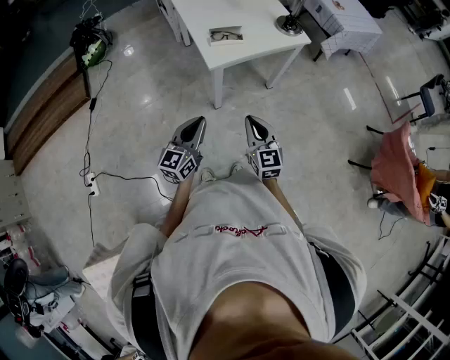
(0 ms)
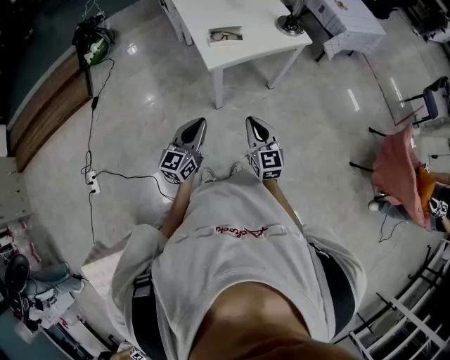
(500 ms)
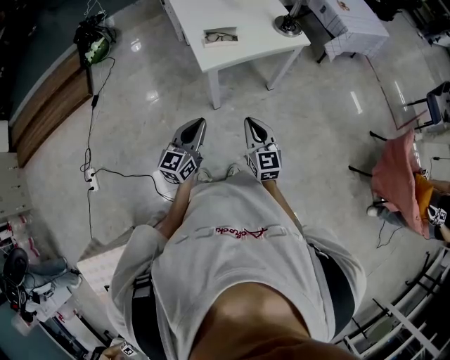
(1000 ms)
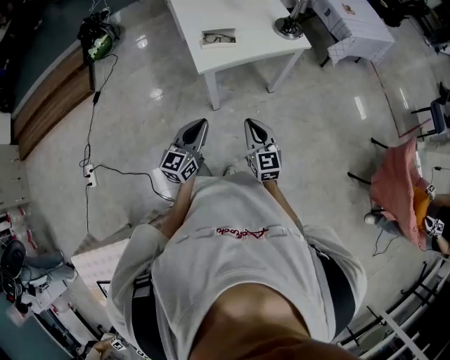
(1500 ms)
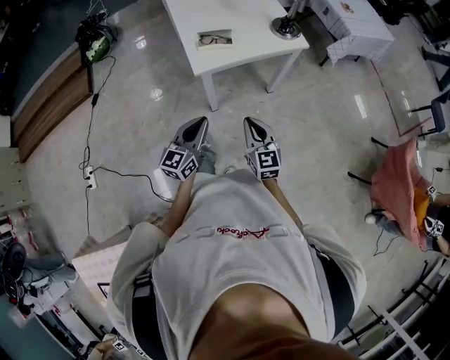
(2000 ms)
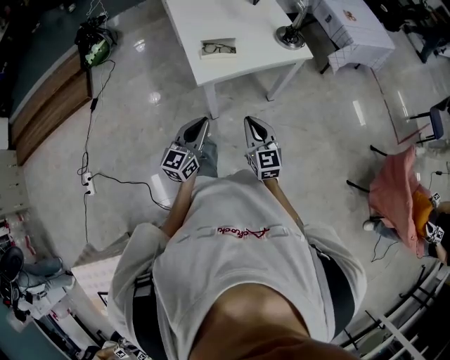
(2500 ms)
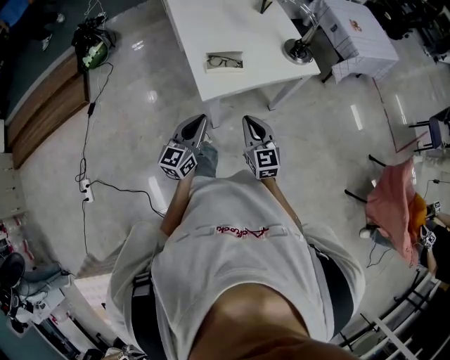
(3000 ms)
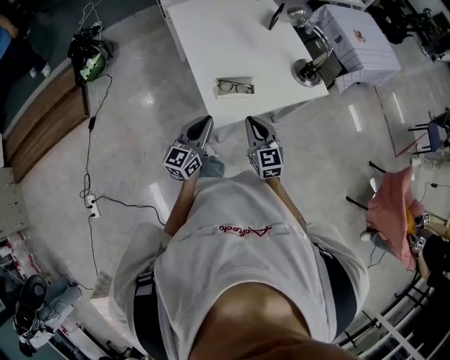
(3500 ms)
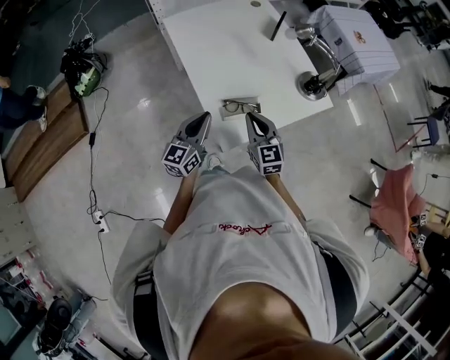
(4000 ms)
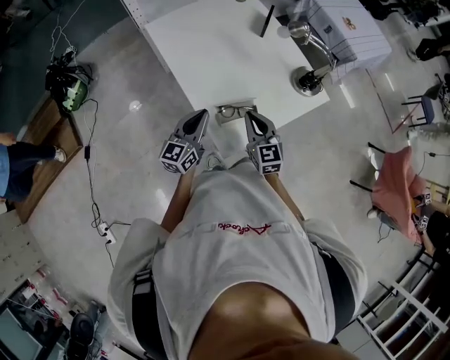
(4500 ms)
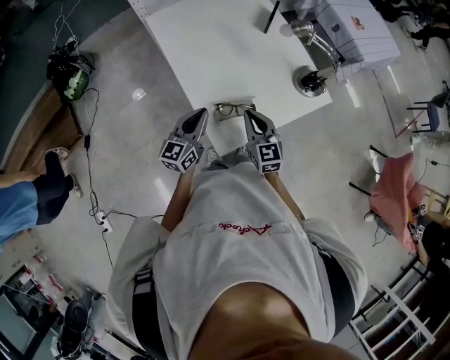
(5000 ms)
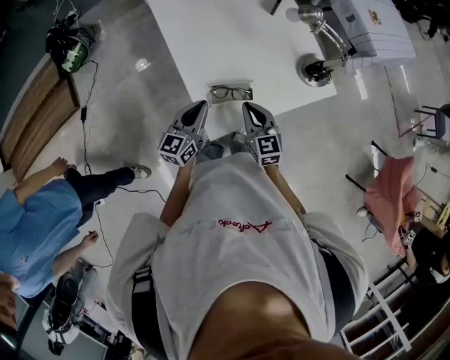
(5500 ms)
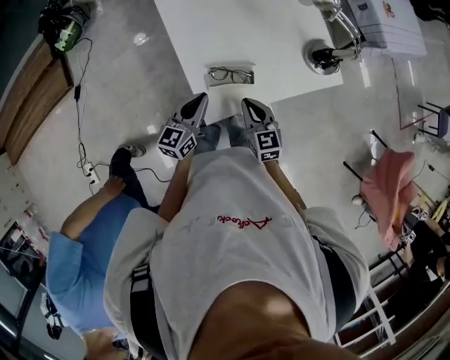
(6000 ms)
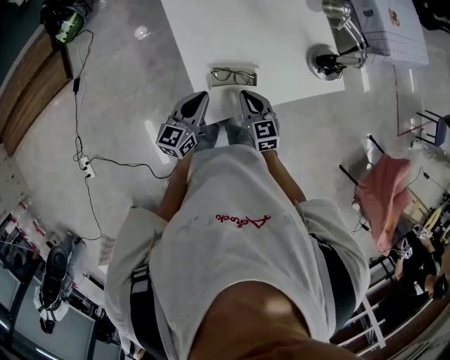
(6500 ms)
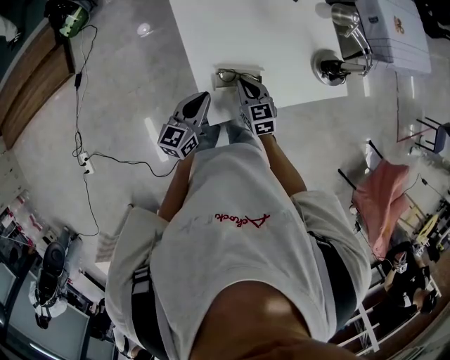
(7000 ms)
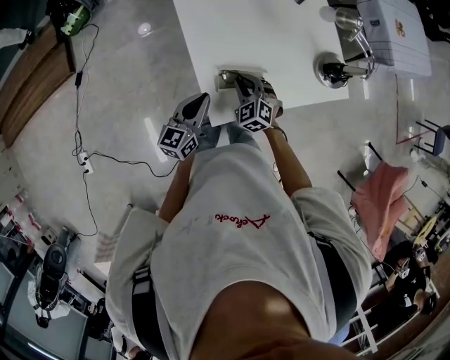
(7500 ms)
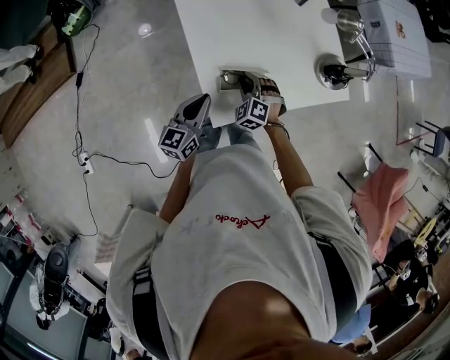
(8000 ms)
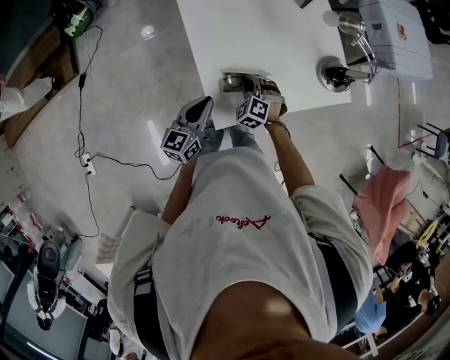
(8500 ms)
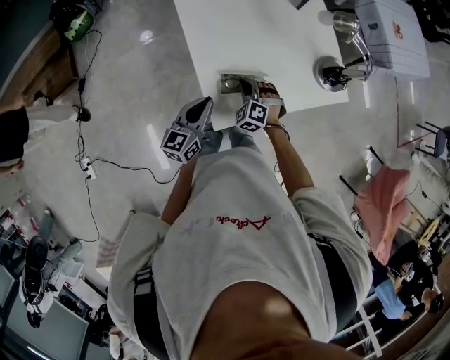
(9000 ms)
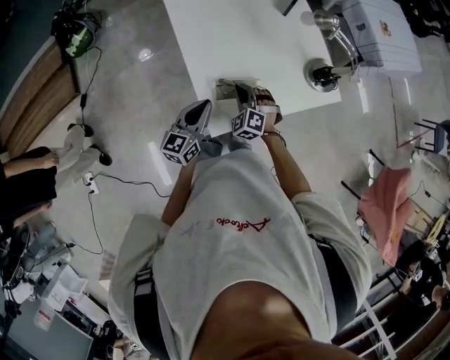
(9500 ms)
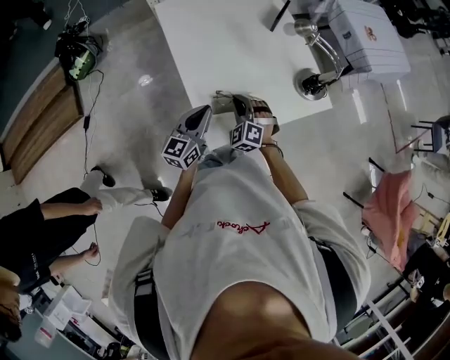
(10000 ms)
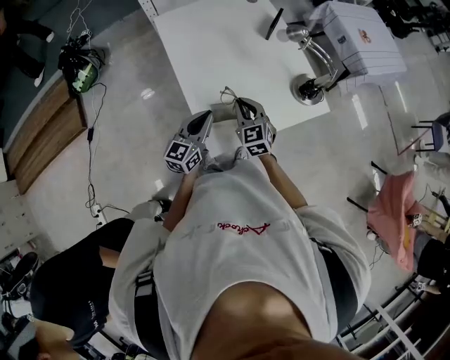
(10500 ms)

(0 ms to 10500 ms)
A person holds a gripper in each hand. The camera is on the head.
0 ms - 2000 ms: Both grippers move to the right and forward, approximately 10 cm.
2000 ms - 4000 ms: The grippers both shift forward and to the left by about 35 cm.
4000 ms - 6500 ms: The grippers both shift downward by some 10 cm. The right gripper swivels roughly 20 degrees.
6500 ms - 8500 ms: The right gripper shifts some 10 cm downward and forward, and twists some 50 degrees counterclockwise, seen from behind.
8500 ms - 10500 ms: The left gripper goes roughly 5 cm upward. The right gripper travels upward by about 15 cm, and changes its angle by some 50 degrees.

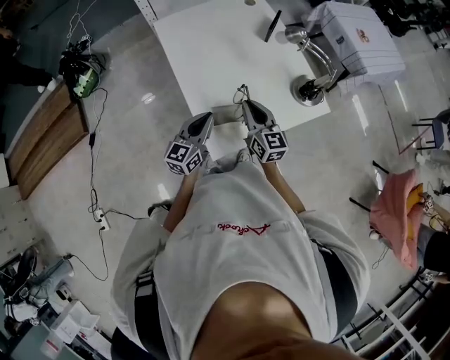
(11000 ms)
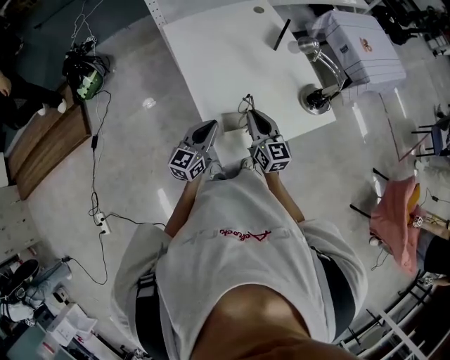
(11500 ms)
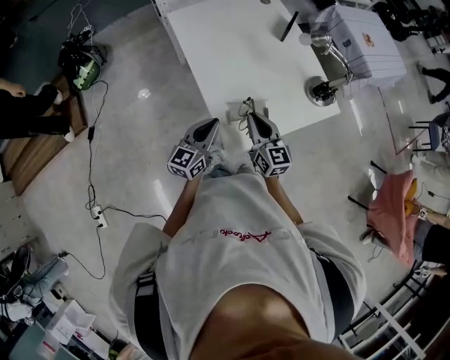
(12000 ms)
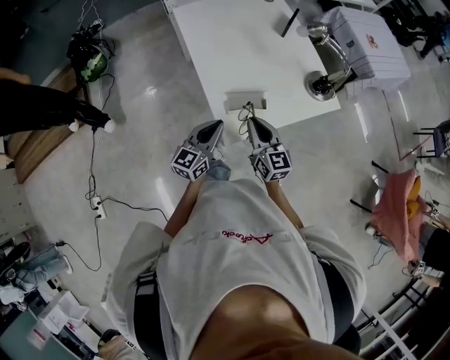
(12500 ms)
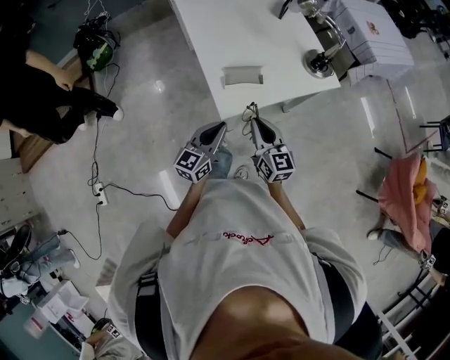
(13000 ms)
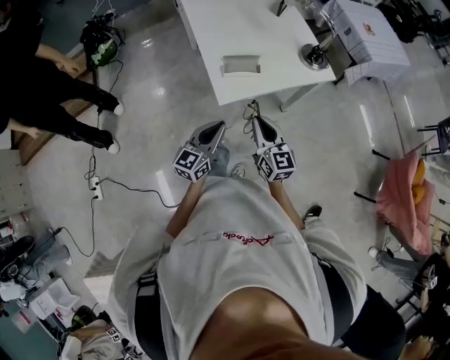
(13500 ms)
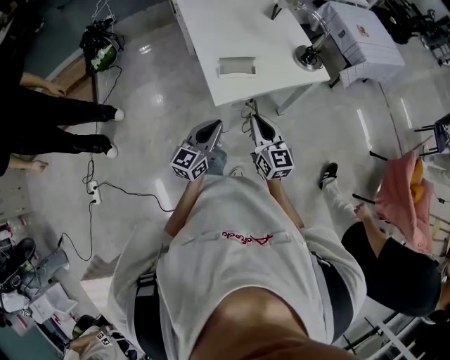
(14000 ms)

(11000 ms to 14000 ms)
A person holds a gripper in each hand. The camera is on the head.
11000 ms - 12500 ms: The grippers both shift backward by approximately 10 cm.
12500 ms - 14000 ms: The right gripper moves backward and to the right, approximately 15 cm. Meanwhile the left gripper goes approximately 15 cm backward.

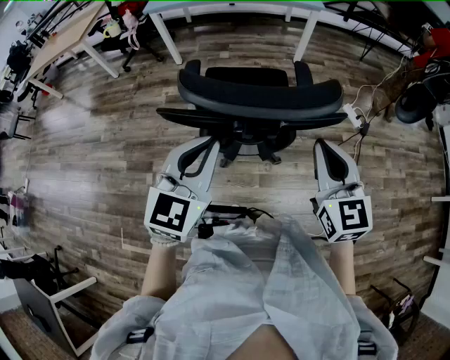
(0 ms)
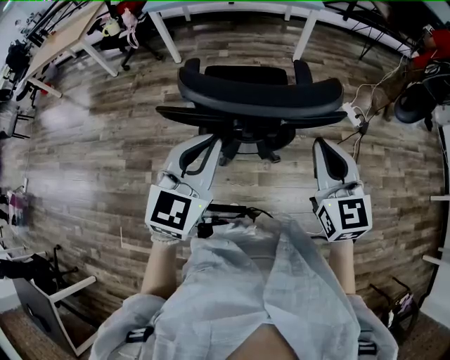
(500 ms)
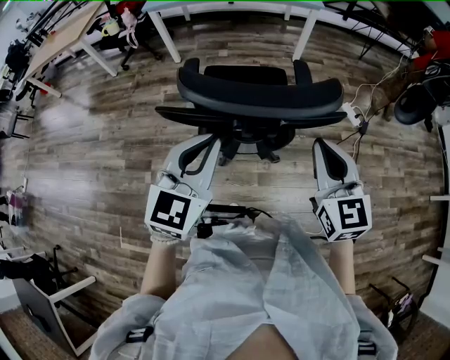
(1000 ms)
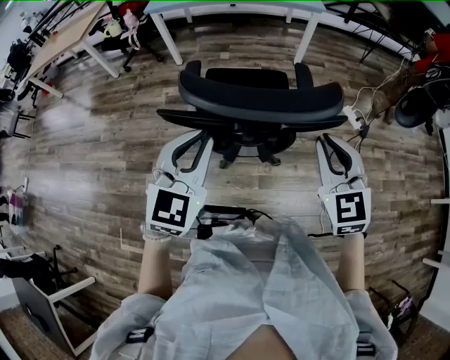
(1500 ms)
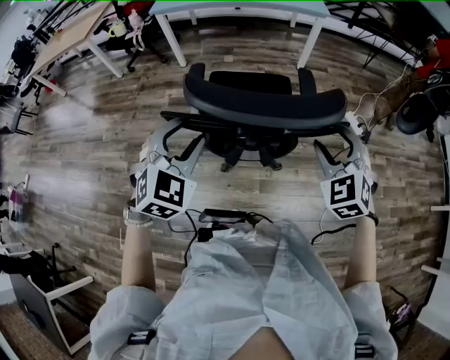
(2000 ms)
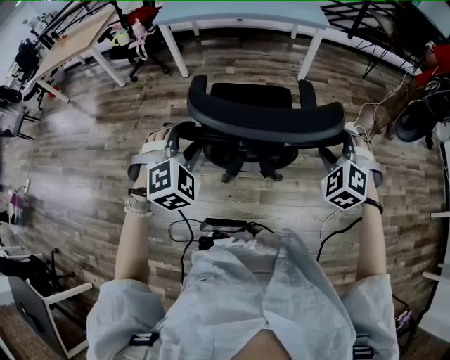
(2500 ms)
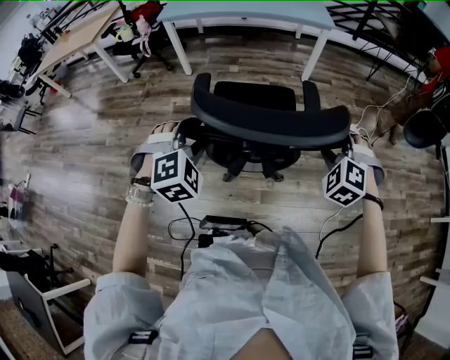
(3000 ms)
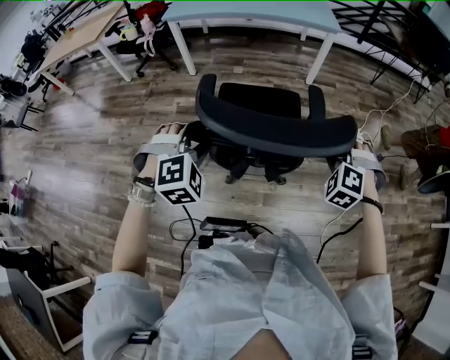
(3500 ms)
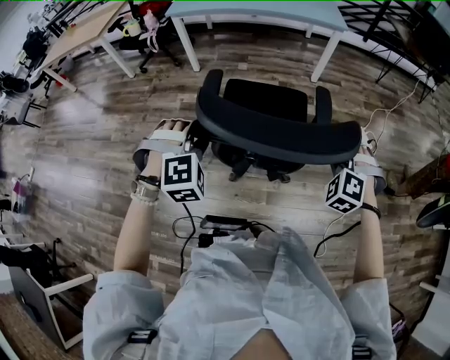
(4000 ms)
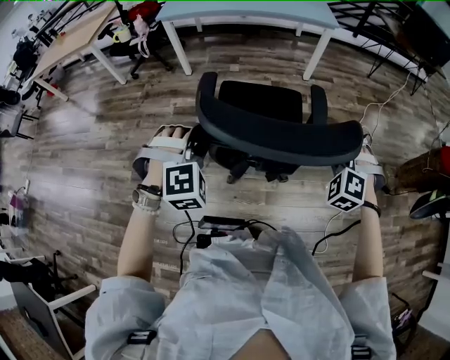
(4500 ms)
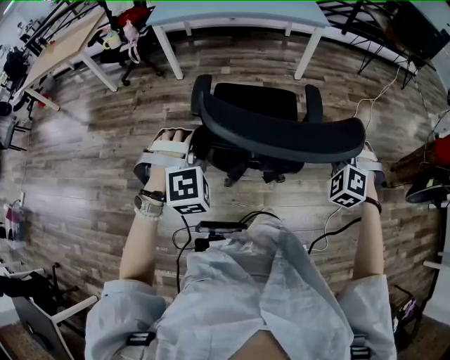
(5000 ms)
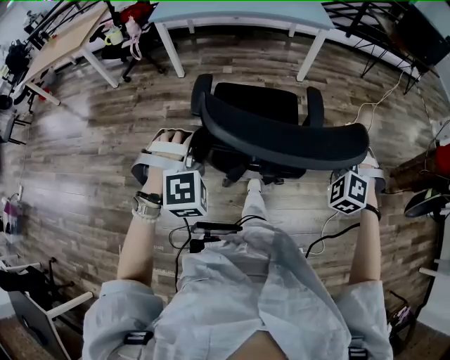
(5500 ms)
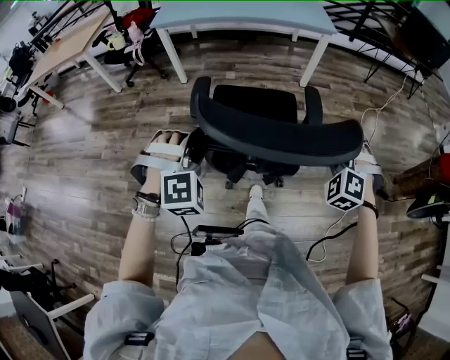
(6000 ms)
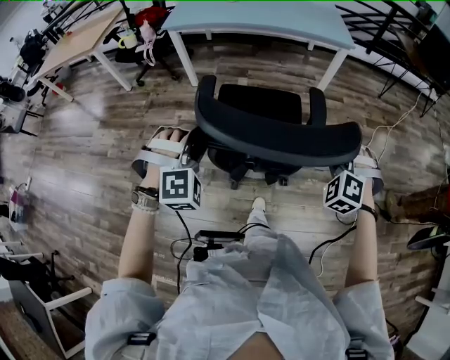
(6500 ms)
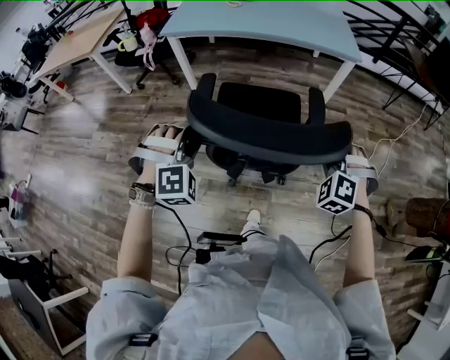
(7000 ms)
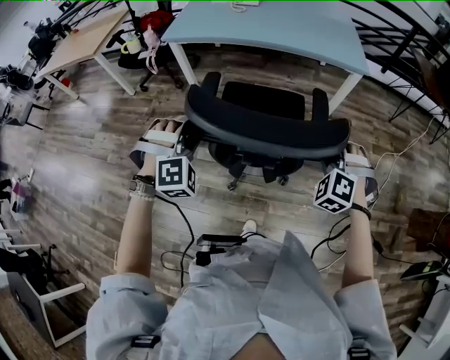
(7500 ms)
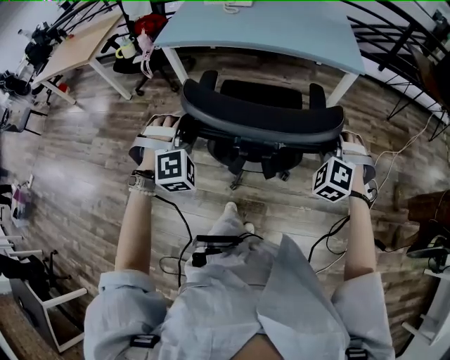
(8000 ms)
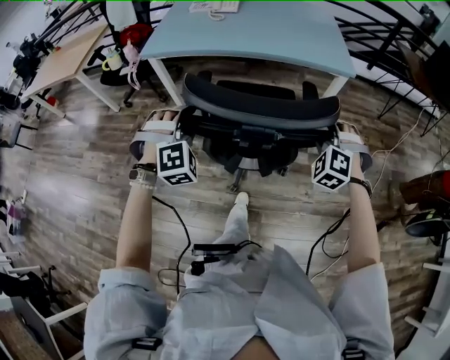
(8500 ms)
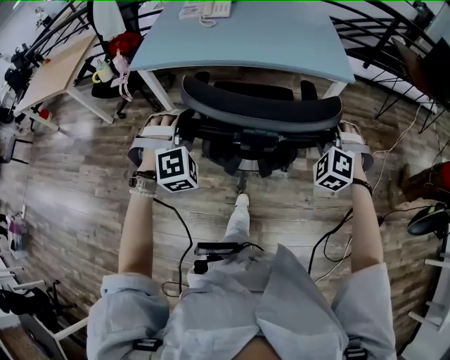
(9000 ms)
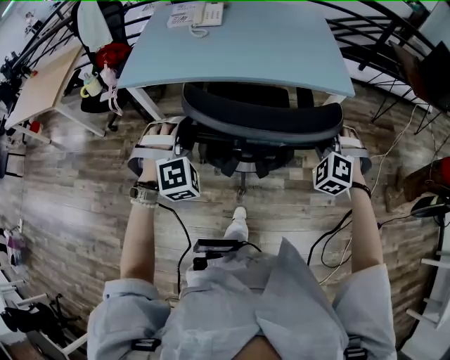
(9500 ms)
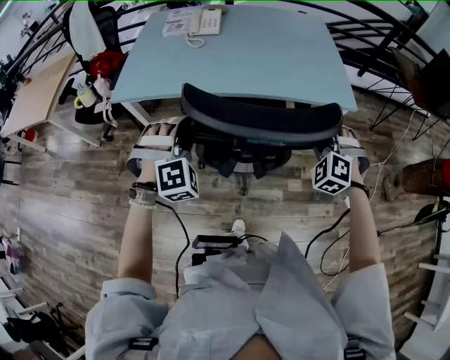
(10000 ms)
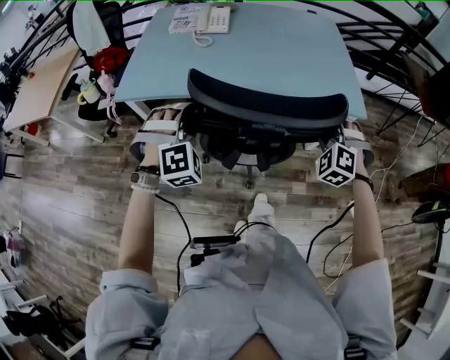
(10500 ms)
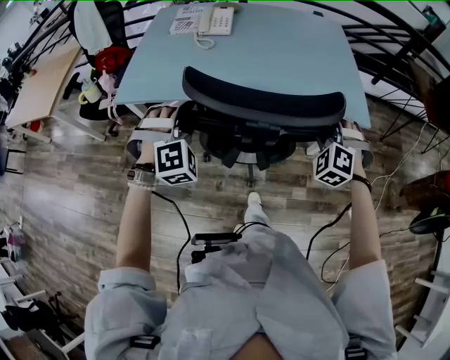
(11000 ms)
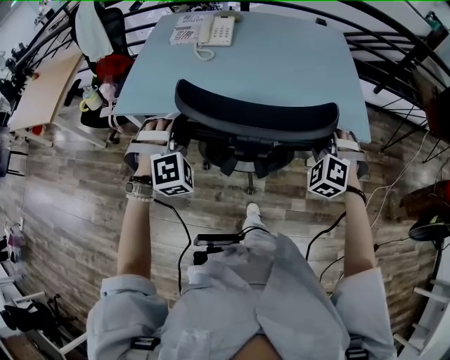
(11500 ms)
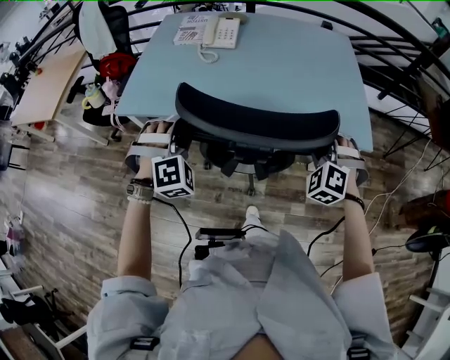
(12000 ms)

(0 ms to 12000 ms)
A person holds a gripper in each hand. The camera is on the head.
0 ms - 2000 ms: The left gripper shifts some 5 cm to the left, swivels some 30 degrees, and opens its fingers, while the right gripper heads forward, covering roughly 5 cm, swivels approximately 40 degrees, and opens up.
2000 ms - 4000 ms: Both grippers move downward and forward, roughly 10 cm. The left gripper turns by approximately 40 degrees; the right gripper rotates approximately 30 degrees, and closes its fingers.
4000 ms - 6000 ms: The right gripper shifts roughly 5 cm forward.
6000 ms - 8000 ms: Both grippers travel together forward, approximately 30 cm.
8000 ms - 10000 ms: Both grippers move forward, approximately 30 cm.
10000 ms - 12000 ms: The two grippers go approximately 15 cm forward.

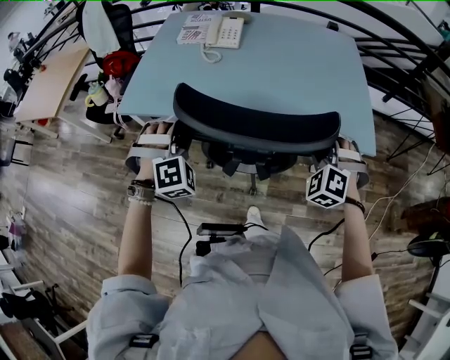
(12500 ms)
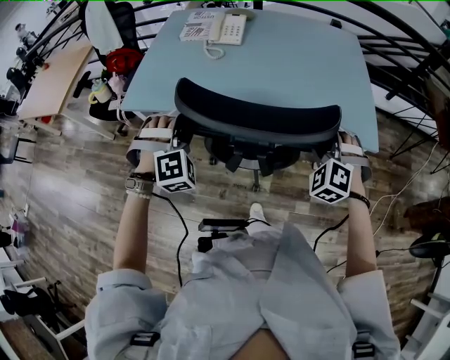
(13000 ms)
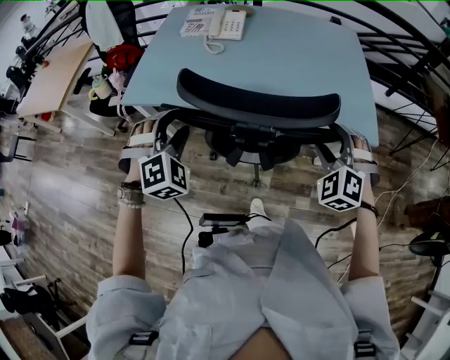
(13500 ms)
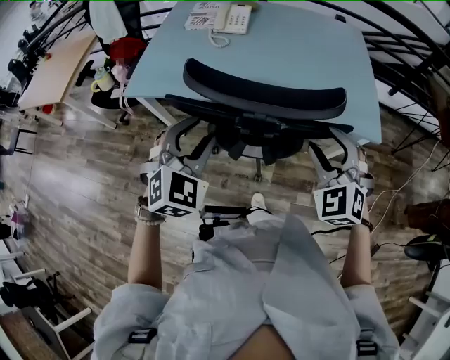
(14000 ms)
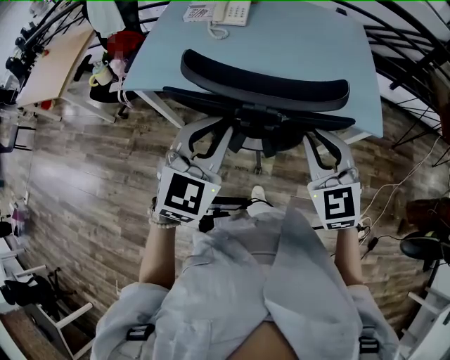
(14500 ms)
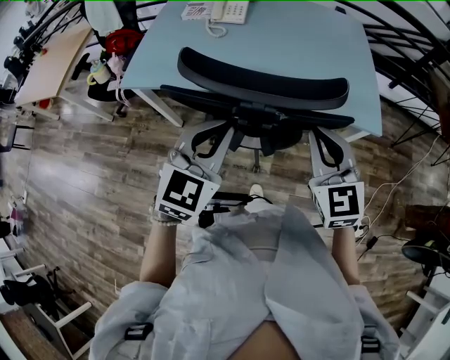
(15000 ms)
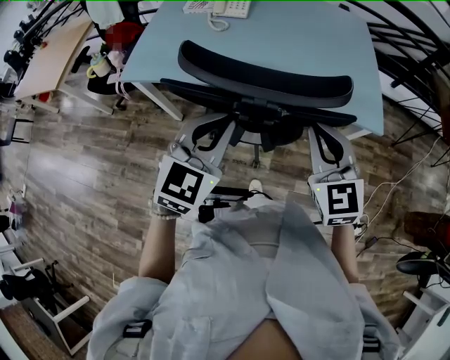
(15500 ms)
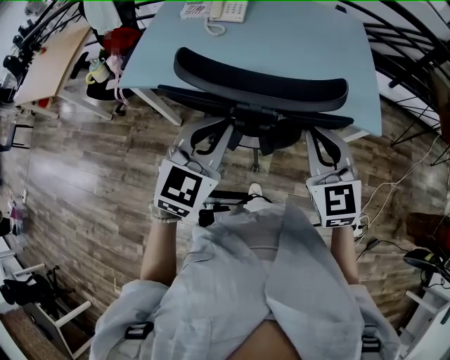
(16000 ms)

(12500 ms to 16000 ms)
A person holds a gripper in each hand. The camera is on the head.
12500 ms - 14500 ms: The right gripper is displaced backward, upward and to the left by approximately 15 cm, rotates around the line of its fingers by some 40 degrees, clockwise from behind, and closes up. The left gripper travels backward, upward and to the right by roughly 15 cm, rolls counterclockwise, seen from behind, by approximately 50 degrees, and closes up.
14500 ms - 16000 ms: The grippers make only small movements.
